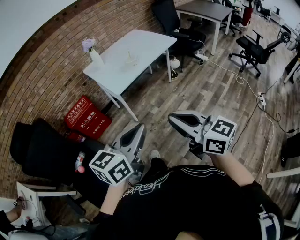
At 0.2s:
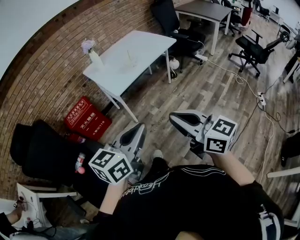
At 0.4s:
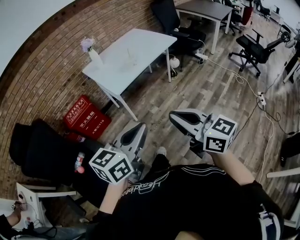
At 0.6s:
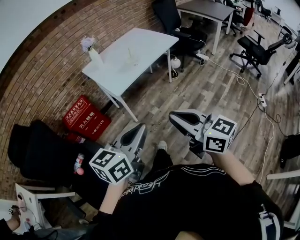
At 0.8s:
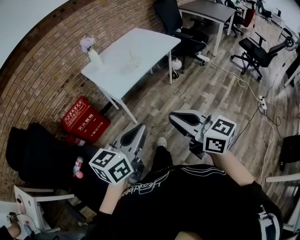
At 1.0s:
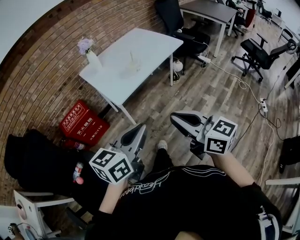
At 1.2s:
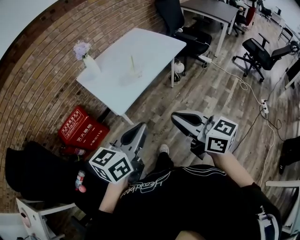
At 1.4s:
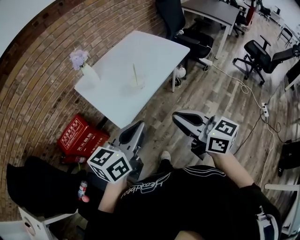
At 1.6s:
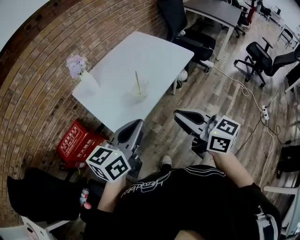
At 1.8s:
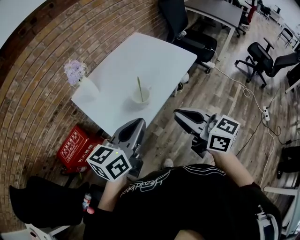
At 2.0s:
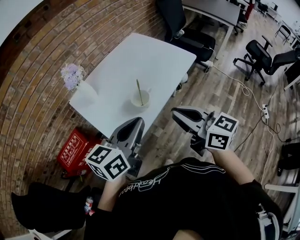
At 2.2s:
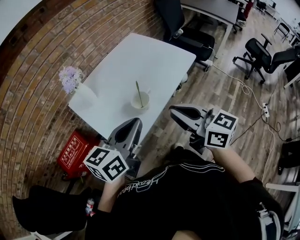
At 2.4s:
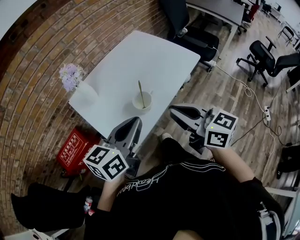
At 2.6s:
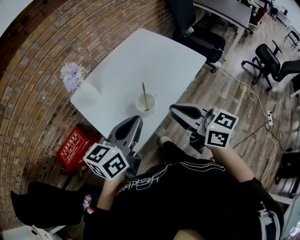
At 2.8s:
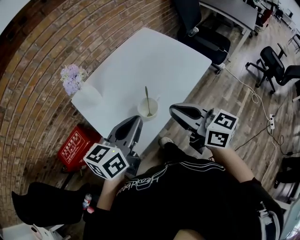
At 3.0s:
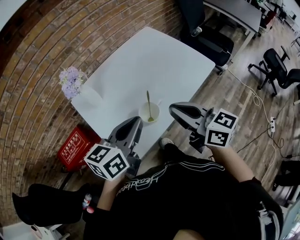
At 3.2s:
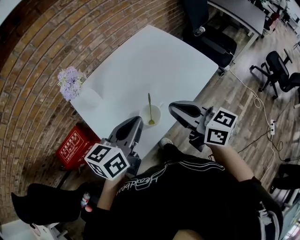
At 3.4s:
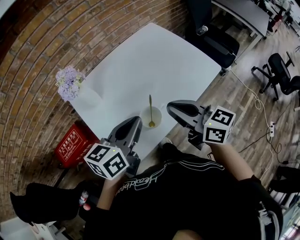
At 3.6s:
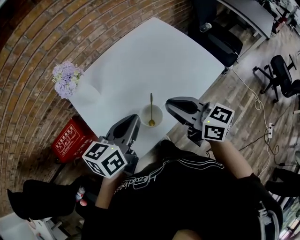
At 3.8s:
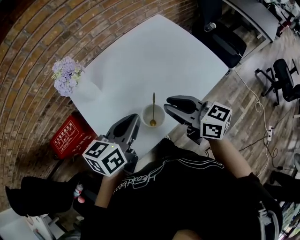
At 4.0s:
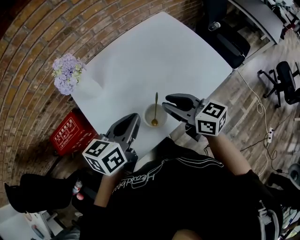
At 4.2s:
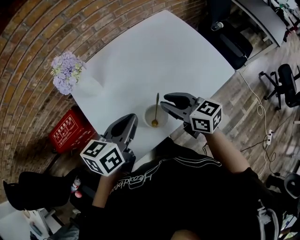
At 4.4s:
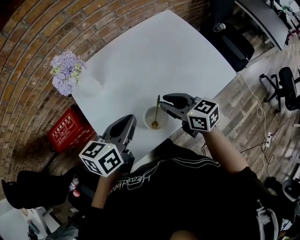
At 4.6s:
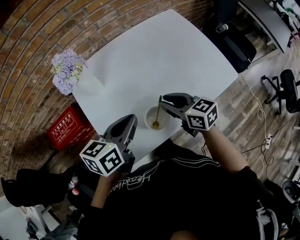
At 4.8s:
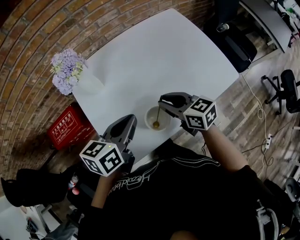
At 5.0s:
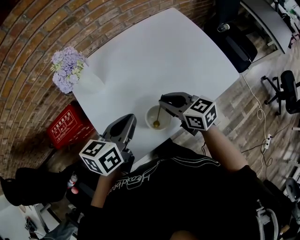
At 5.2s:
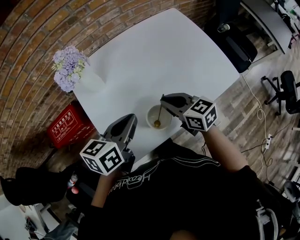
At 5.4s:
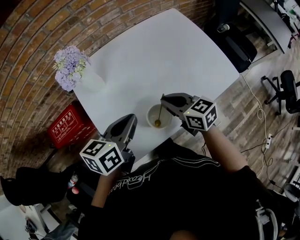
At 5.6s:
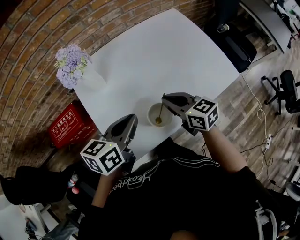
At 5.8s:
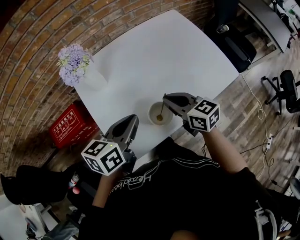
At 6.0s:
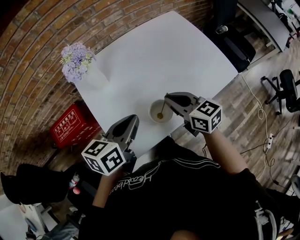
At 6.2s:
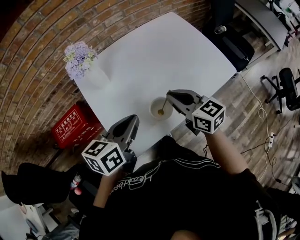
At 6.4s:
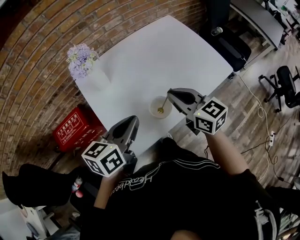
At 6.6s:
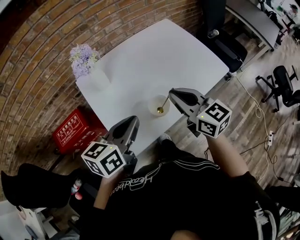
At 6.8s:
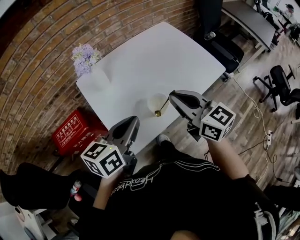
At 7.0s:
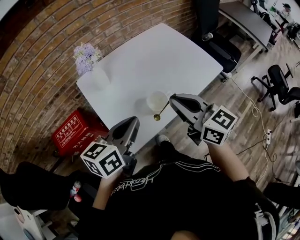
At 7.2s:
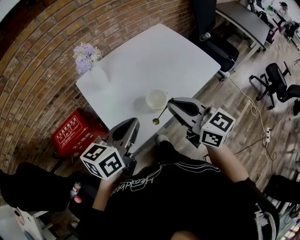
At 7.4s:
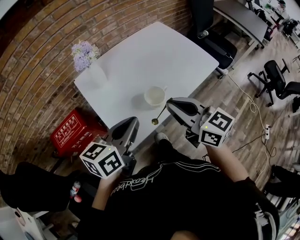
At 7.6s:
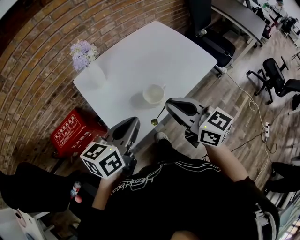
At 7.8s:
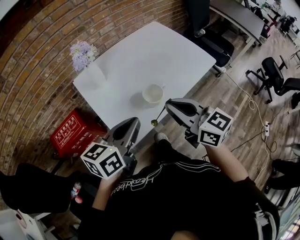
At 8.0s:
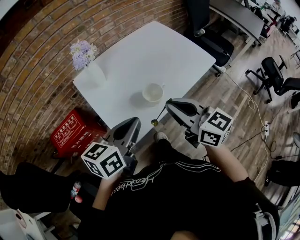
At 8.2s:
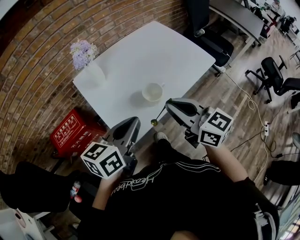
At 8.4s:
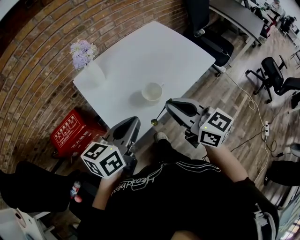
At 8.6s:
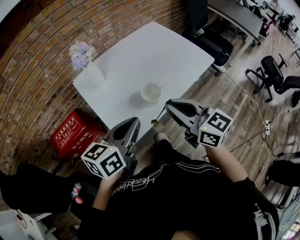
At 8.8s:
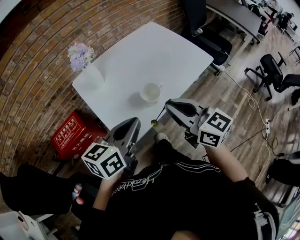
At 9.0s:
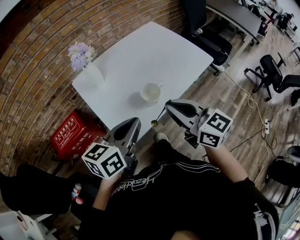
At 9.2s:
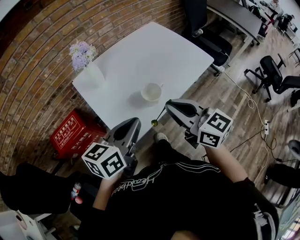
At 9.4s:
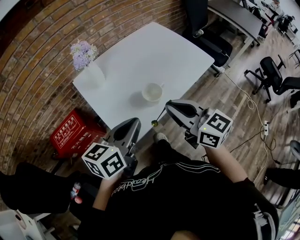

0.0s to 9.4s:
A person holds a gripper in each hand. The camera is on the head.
0.0s to 1.6s: The two grippers travel together, forward, some 40 cm.
1.6s to 3.2s: Both grippers travel together forward, some 25 cm.
3.2s to 4.8s: The right gripper shifts about 20 cm downward and forward, and swivels approximately 30 degrees, while the left gripper heads downward and forward, covering roughly 10 cm.
4.8s to 6.2s: The right gripper shifts some 5 cm upward. The left gripper shifts approximately 5 cm backward.
6.2s to 7.8s: The grippers both shift backward and upward by some 15 cm.
7.8s to 9.4s: The grippers stay close to where they were, moving slightly.

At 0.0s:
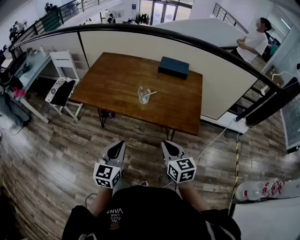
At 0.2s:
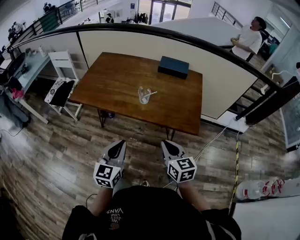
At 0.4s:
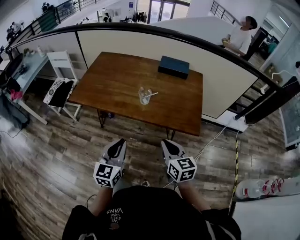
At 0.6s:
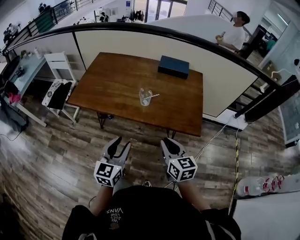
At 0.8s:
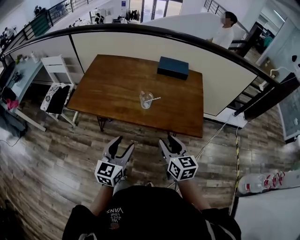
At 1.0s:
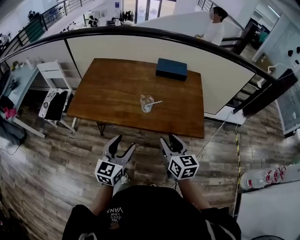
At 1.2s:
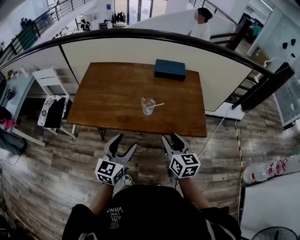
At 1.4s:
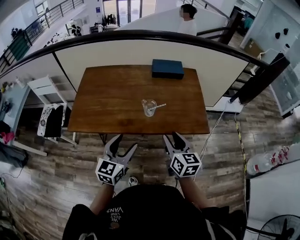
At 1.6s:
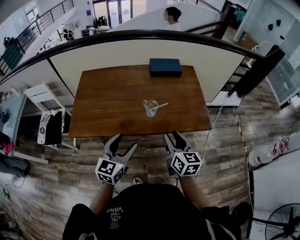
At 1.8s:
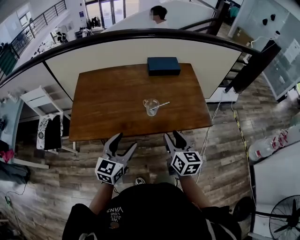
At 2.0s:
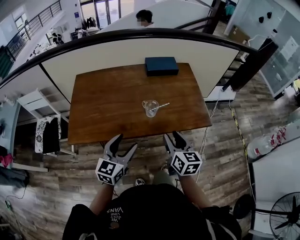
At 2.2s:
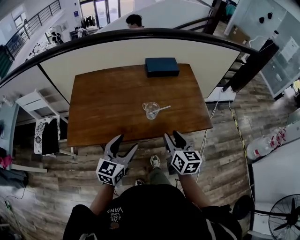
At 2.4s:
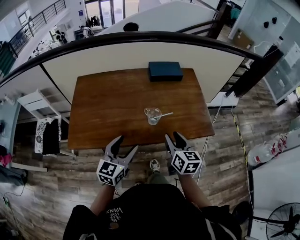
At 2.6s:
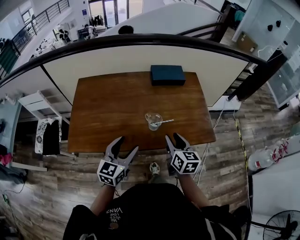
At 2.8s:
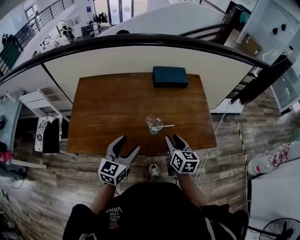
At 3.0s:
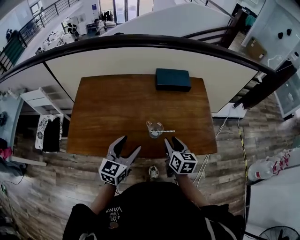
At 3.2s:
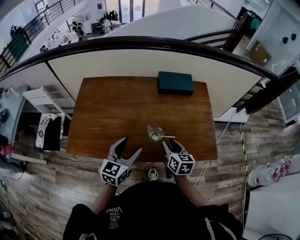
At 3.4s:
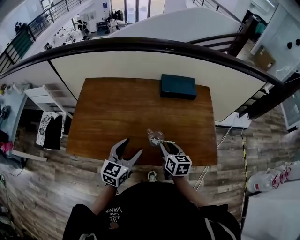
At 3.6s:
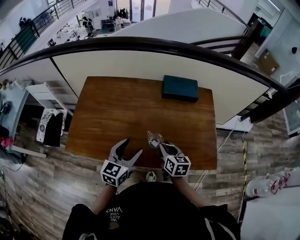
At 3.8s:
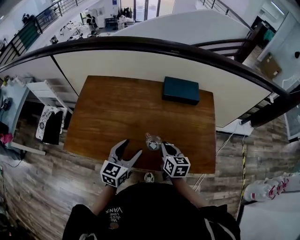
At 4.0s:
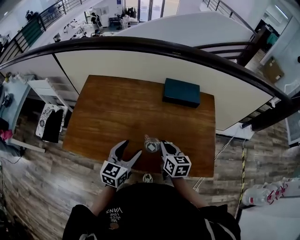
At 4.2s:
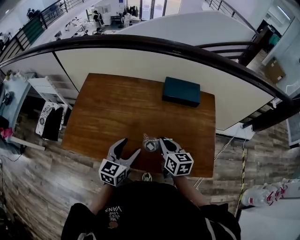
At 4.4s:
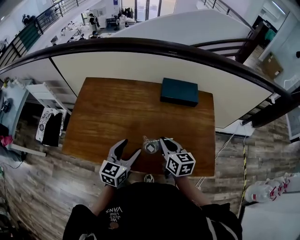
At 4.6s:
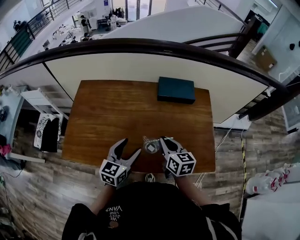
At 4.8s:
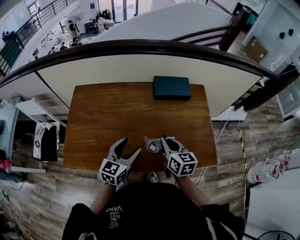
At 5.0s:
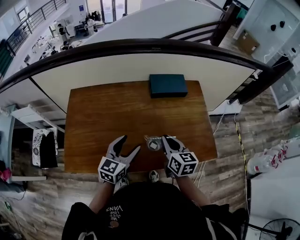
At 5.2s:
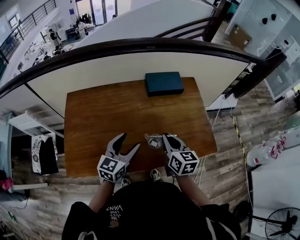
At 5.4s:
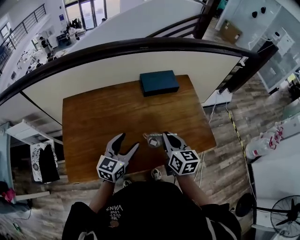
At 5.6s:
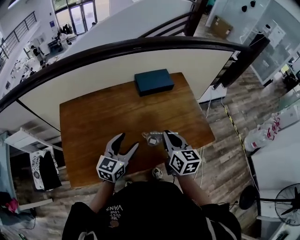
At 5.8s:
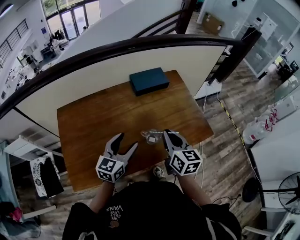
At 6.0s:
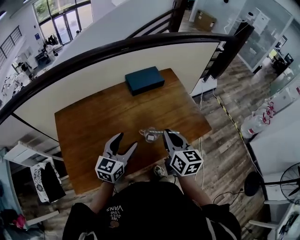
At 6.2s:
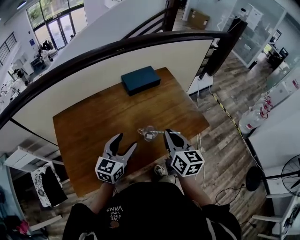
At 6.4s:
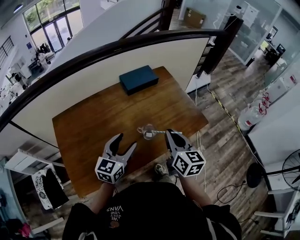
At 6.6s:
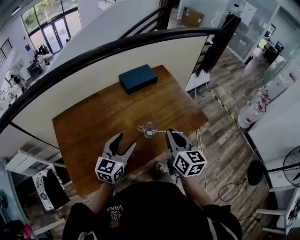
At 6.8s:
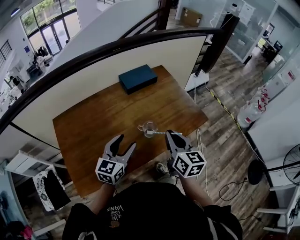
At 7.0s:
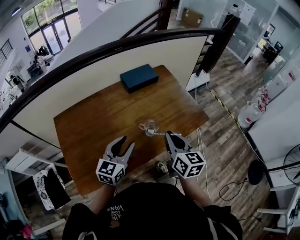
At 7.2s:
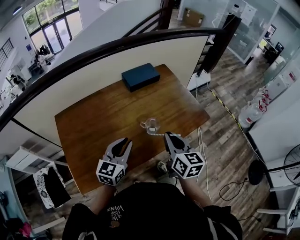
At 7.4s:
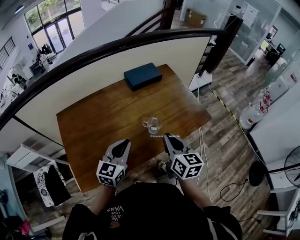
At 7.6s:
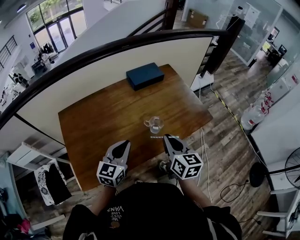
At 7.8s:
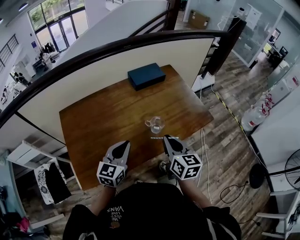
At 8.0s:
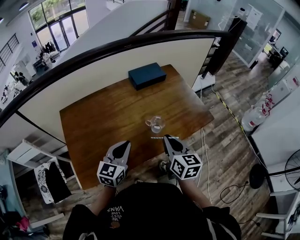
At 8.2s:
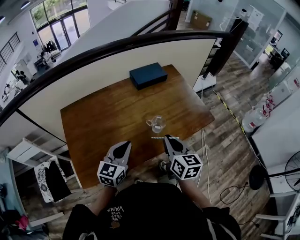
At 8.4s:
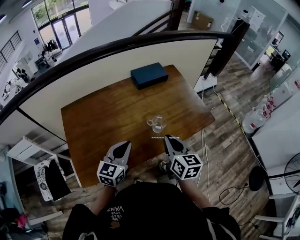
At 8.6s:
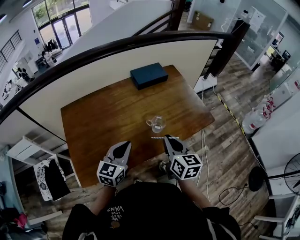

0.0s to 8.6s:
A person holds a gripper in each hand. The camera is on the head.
0.0s to 1.4s: Both grippers travel together forward and to the left, some 15 cm. The left gripper turns by about 20 degrees, and opens up. The right gripper swivels roughly 20 degrees, and opens up.
1.4s to 2.8s: The right gripper moves forward and downward, some 15 cm, while the left gripper heads forward, covering roughly 10 cm.
2.8s to 4.4s: The grippers both shift forward by about 10 cm. The right gripper closes its fingers.
4.4s to 5.8s: The right gripper travels upward by about 10 cm, and changes its angle by about 30 degrees, while the left gripper changes place by approximately 5 cm, and turns by some 30 degrees.
5.8s to 7.2s: The grippers both shift backward by some 5 cm. The left gripper closes.
7.2s to 8.6s: There are only small adjustments of the grippers.

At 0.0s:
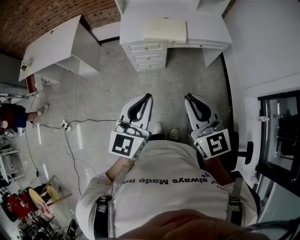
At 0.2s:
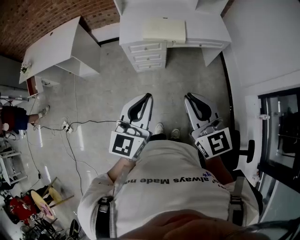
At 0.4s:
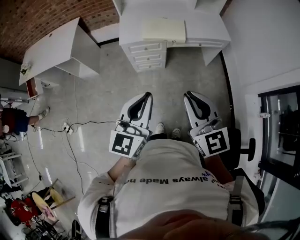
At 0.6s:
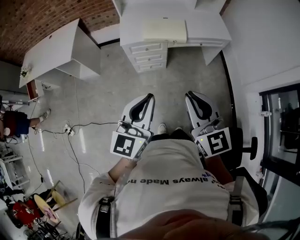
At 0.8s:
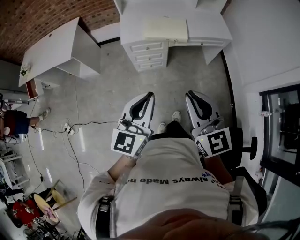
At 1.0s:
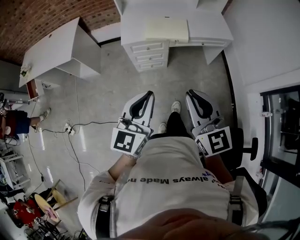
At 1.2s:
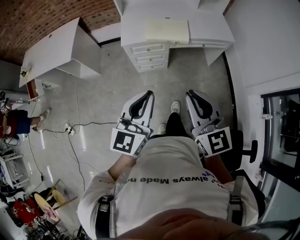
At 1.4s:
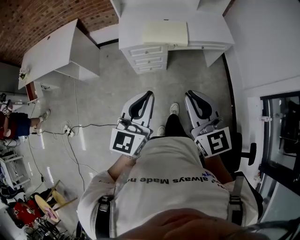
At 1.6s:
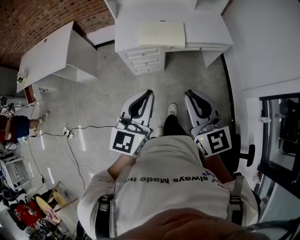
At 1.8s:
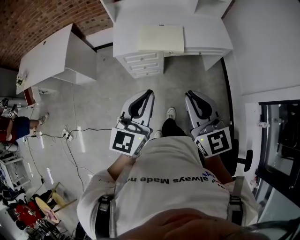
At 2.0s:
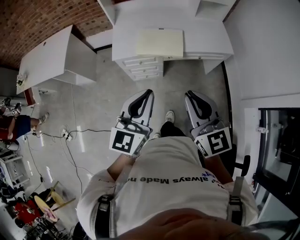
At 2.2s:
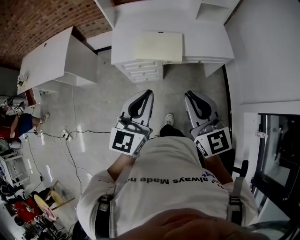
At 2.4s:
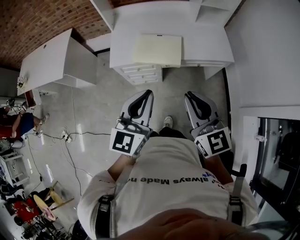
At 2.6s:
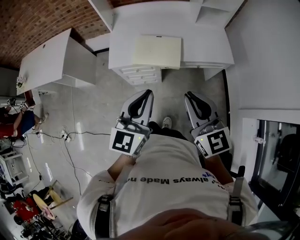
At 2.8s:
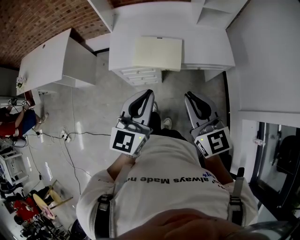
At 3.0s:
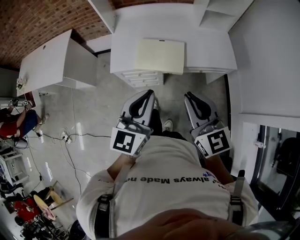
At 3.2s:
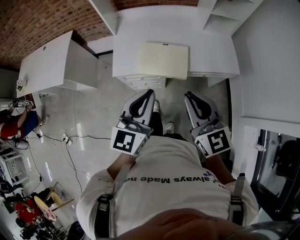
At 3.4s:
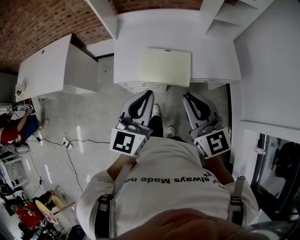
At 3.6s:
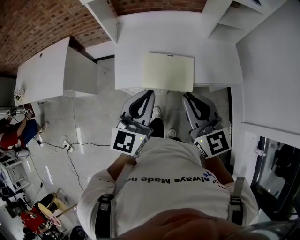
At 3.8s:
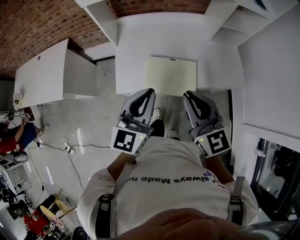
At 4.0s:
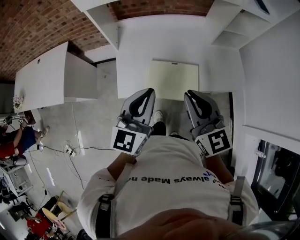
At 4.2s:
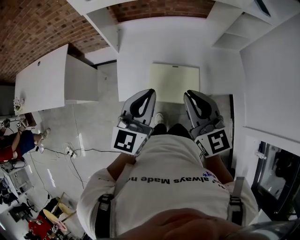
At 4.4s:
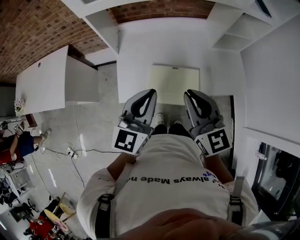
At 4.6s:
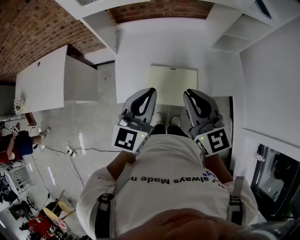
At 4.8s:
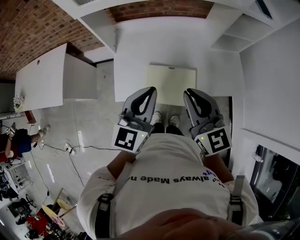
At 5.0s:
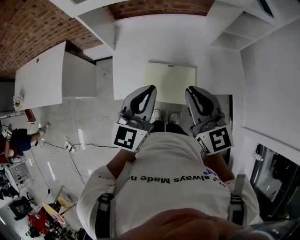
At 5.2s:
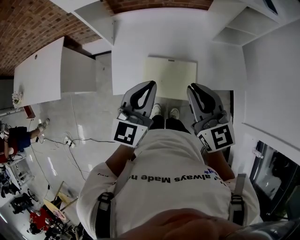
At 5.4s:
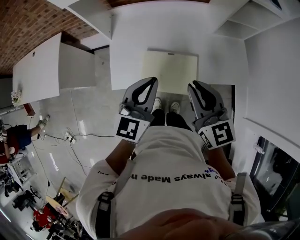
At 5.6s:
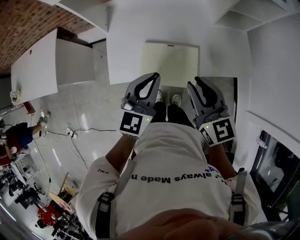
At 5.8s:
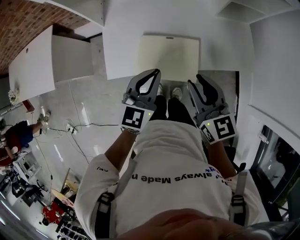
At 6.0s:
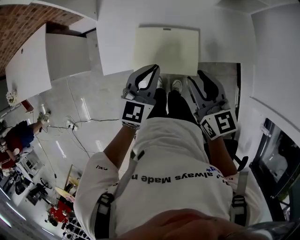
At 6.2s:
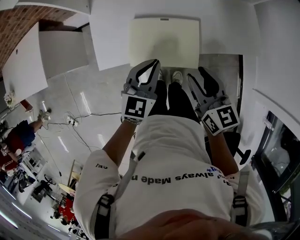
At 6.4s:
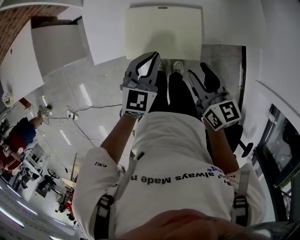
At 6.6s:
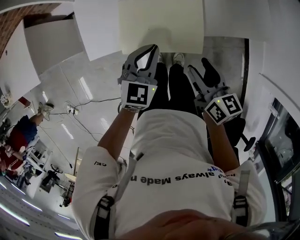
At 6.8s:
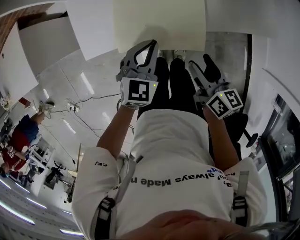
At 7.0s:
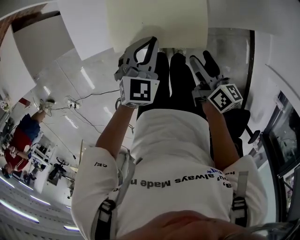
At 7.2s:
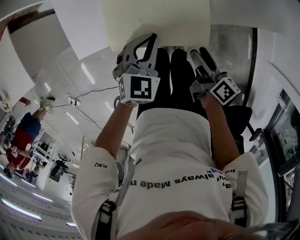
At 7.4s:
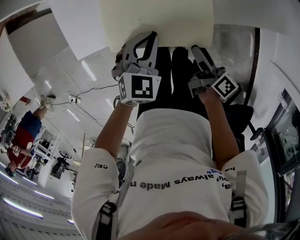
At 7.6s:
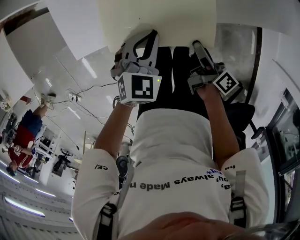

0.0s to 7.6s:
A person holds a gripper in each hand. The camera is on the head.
0.0s to 1.6s: The grippers both shift forward by some 10 cm.
1.6s to 3.0s: The two grippers go approximately 20 cm forward.
3.0s to 4.6s: The two grippers go roughly 25 cm forward.
4.6s to 6.0s: The right gripper is displaced downward and to the right by approximately 20 cm. Meanwhile the left gripper is displaced downward by some 20 cm.
6.0s to 7.6s: The grippers both shift downward by about 25 cm. The right gripper rolls clockwise, seen from behind, by about 70 degrees, and opens its fingers. The left gripper rotates about 30 degrees.
